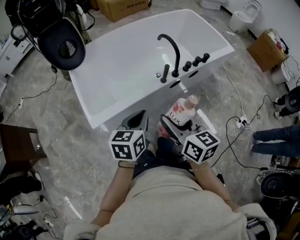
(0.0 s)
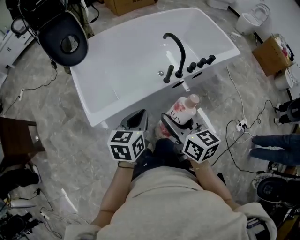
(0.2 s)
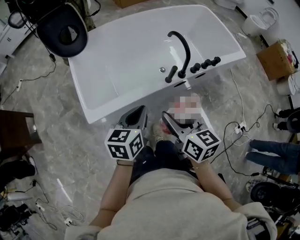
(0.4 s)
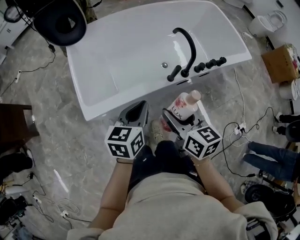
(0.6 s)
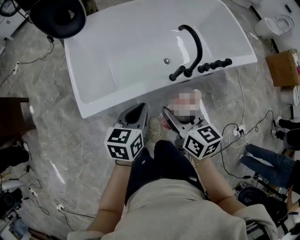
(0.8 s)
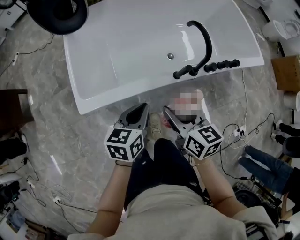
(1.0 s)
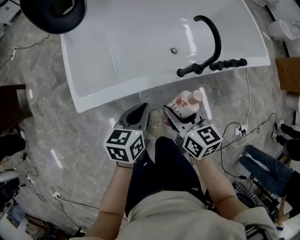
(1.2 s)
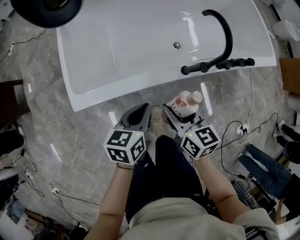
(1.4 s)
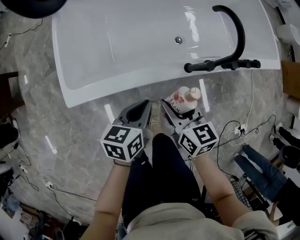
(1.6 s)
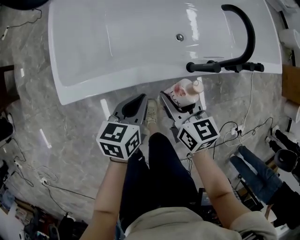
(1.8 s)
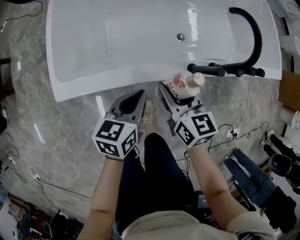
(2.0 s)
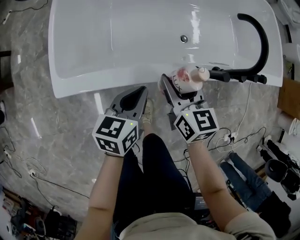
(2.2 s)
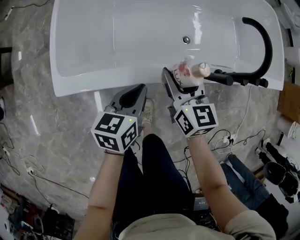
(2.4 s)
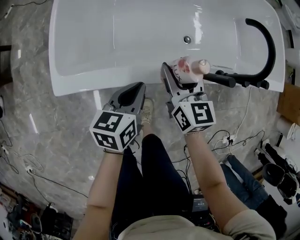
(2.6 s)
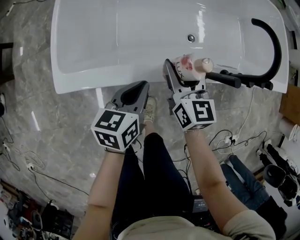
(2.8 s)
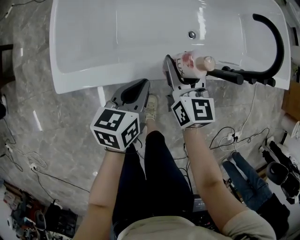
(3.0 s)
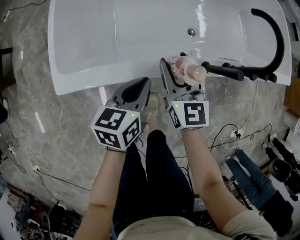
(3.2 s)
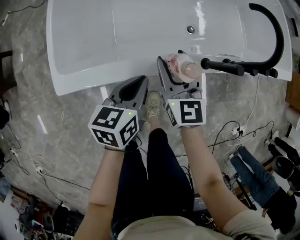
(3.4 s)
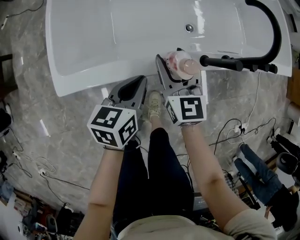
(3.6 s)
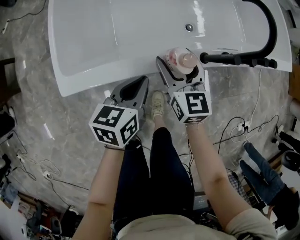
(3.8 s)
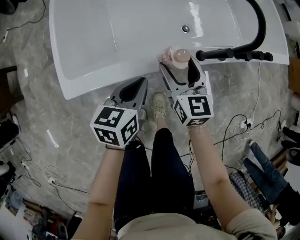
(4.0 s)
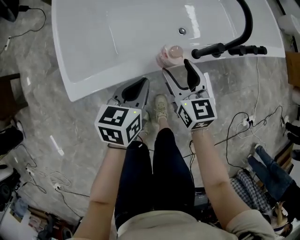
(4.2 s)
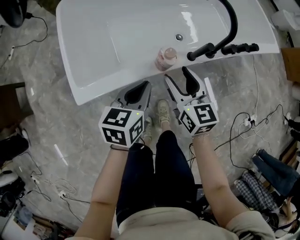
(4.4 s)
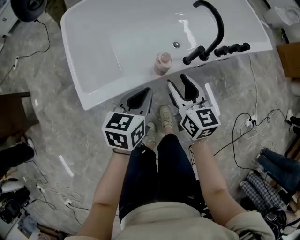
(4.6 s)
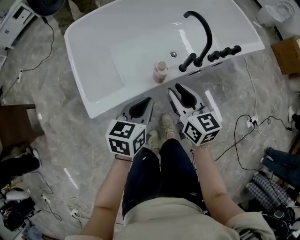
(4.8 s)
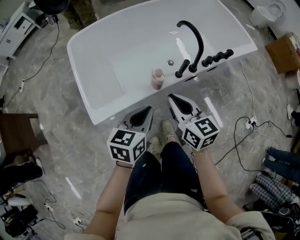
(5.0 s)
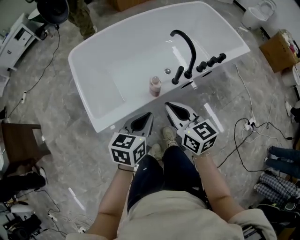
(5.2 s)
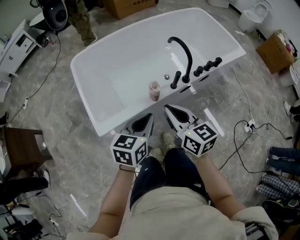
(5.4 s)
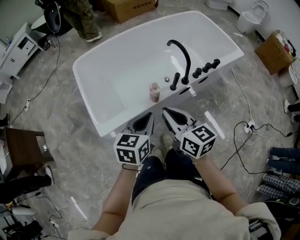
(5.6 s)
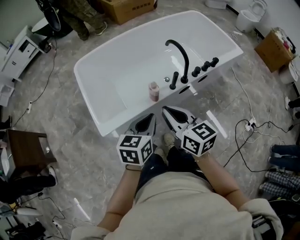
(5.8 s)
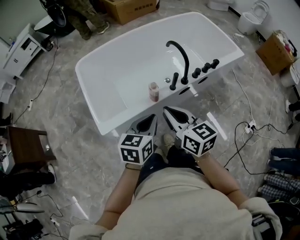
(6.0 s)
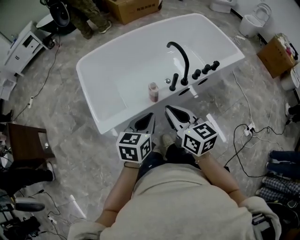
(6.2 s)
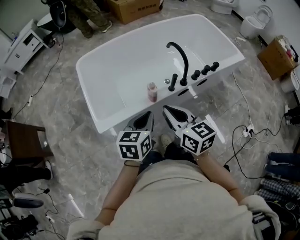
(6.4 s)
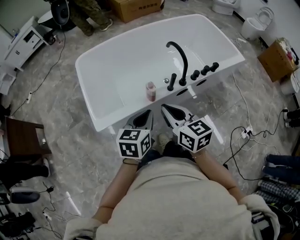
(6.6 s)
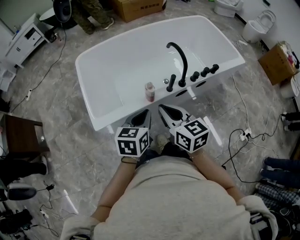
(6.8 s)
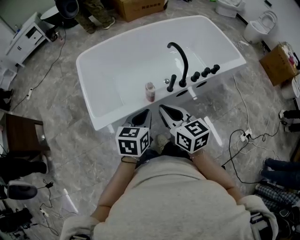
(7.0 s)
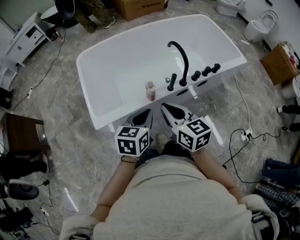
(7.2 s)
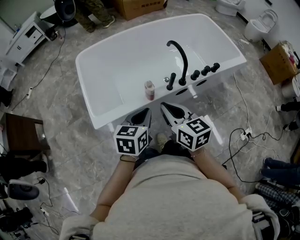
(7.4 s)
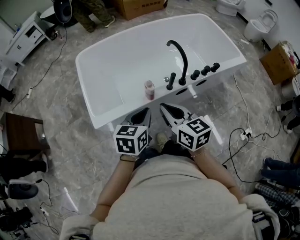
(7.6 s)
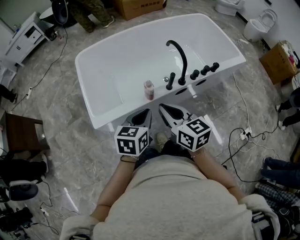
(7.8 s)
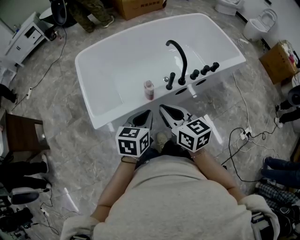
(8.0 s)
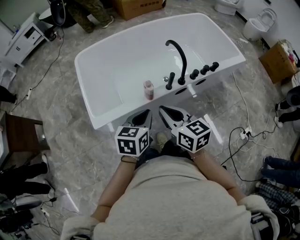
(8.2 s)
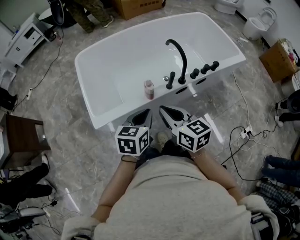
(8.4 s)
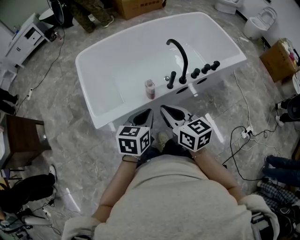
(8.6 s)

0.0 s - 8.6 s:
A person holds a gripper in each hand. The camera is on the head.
0.0 s - 1.4 s: The grippers both shift downward and forward by roughly 25 cm. The left gripper swivels approximately 20 degrees; the right gripper swivels some 20 degrees.
1.4 s - 2.8 s: The right gripper goes approximately 15 cm forward and downward. The left gripper goes some 10 cm downward and forward.
2.8 s - 4.4 s: The right gripper is displaced backward and upward by approximately 10 cm; the left gripper goes some 10 cm upward.
4.4 s - 5.8 s: The two grippers go about 25 cm upward and backward. The right gripper closes up.
5.8 s - 8.6 s: The grippers make only small movements.

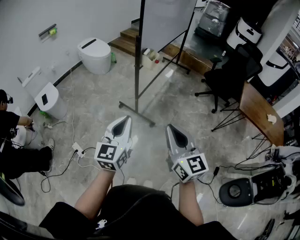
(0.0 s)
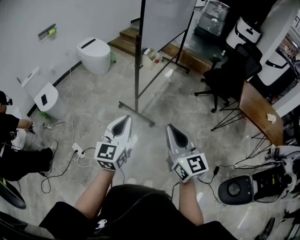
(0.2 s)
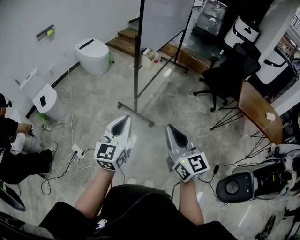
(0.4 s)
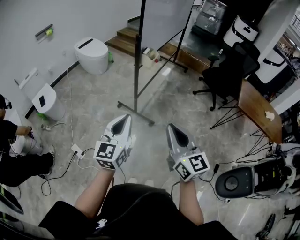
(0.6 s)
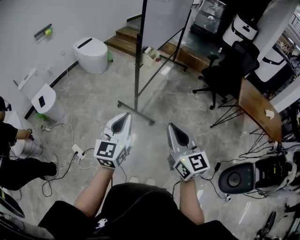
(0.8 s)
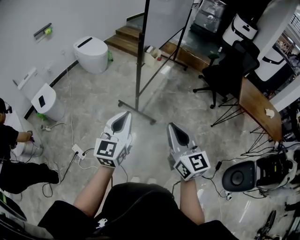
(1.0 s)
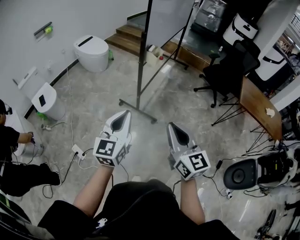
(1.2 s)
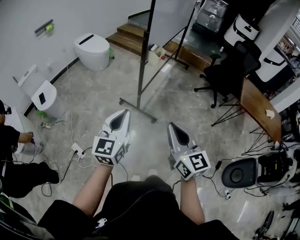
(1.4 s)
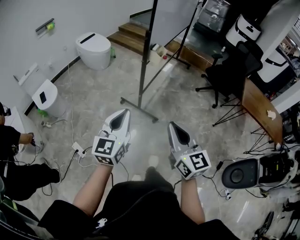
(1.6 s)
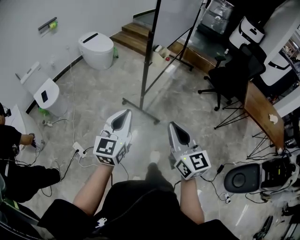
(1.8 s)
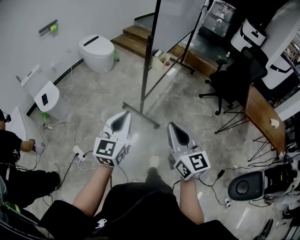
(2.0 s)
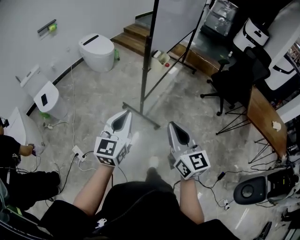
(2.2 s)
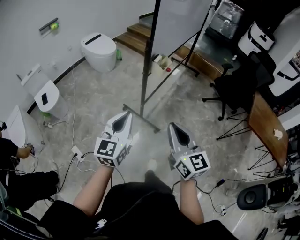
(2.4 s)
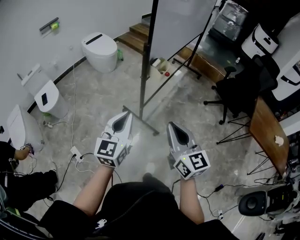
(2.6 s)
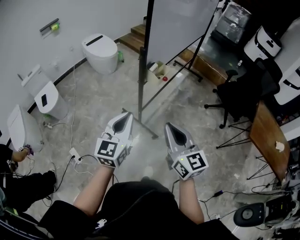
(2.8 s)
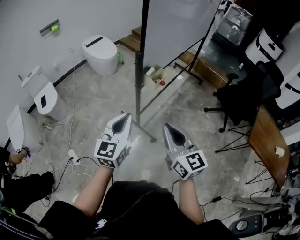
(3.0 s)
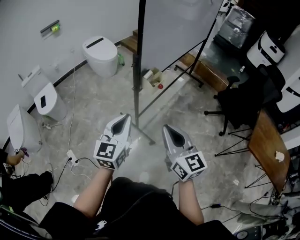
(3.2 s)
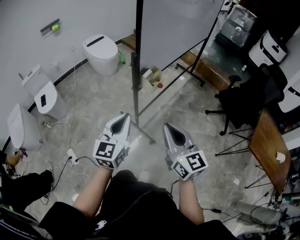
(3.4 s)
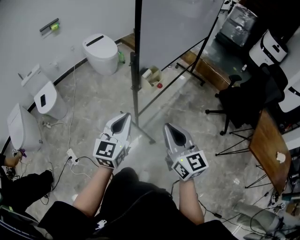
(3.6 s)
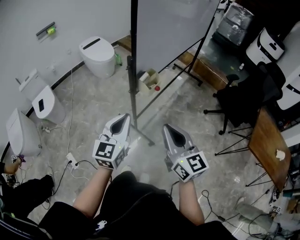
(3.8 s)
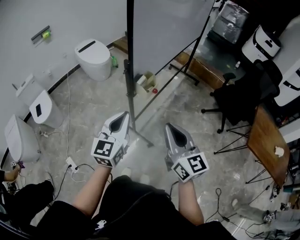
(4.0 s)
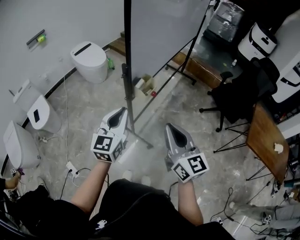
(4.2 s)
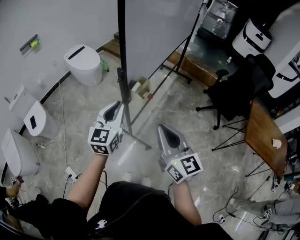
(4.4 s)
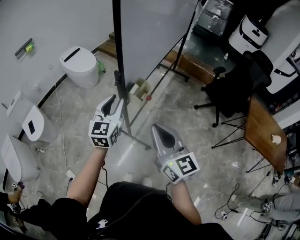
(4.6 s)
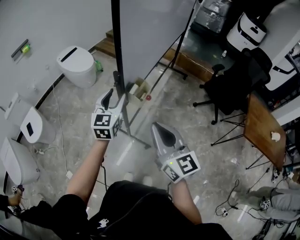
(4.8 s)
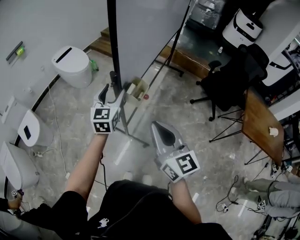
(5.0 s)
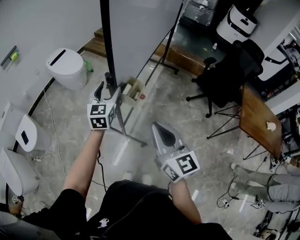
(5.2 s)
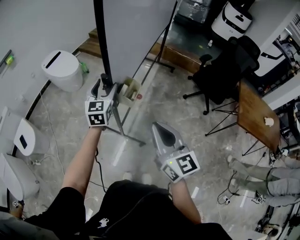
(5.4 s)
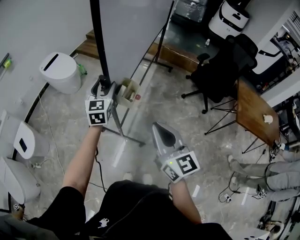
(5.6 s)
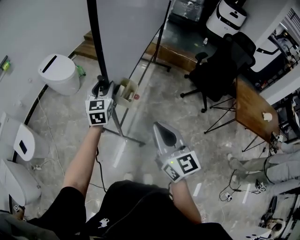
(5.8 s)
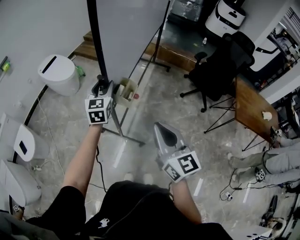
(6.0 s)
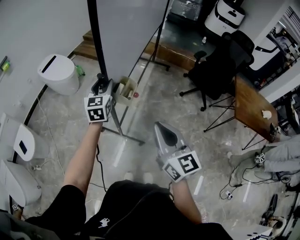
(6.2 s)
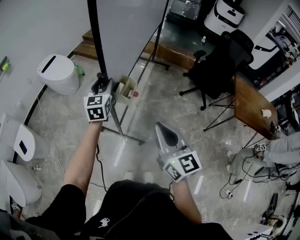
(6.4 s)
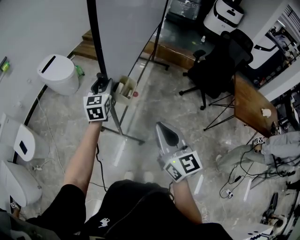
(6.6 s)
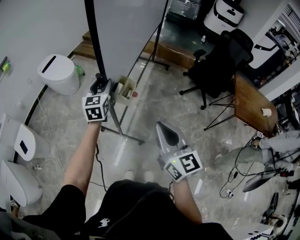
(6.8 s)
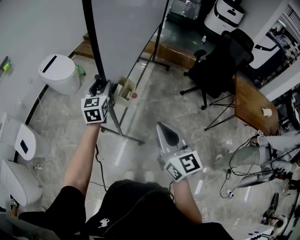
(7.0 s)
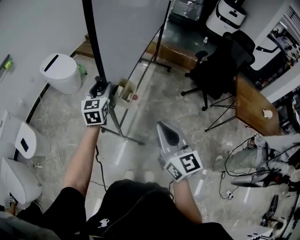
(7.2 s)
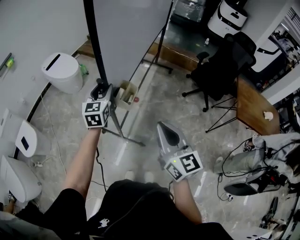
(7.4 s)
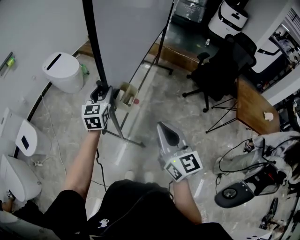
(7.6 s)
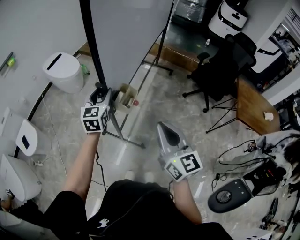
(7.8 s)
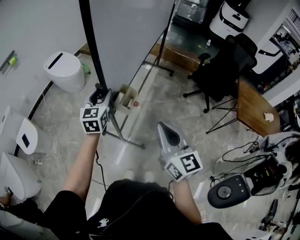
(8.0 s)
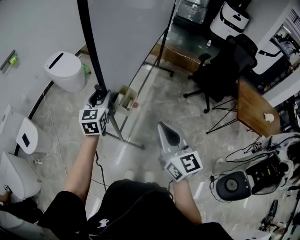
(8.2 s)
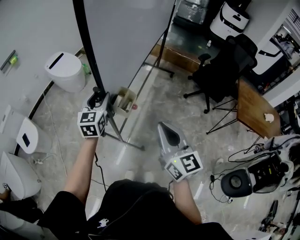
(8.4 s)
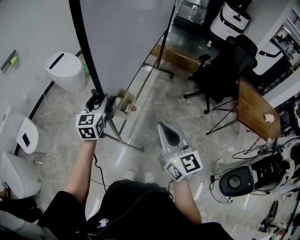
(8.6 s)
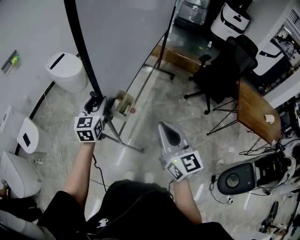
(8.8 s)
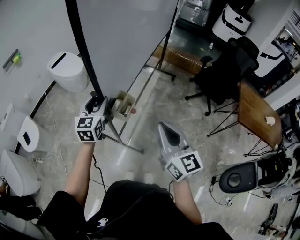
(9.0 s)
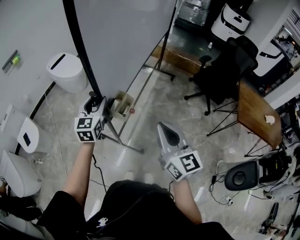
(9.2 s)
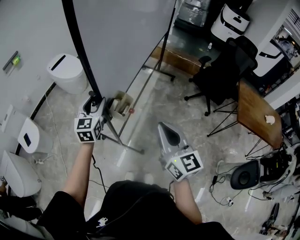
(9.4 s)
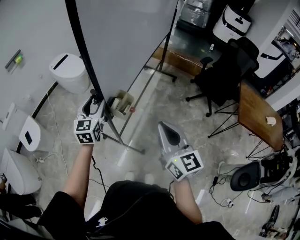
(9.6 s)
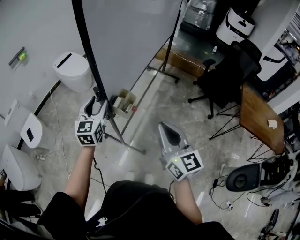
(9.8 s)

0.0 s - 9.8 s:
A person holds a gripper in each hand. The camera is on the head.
0.0 s - 1.4 s: Both grippers travel together to the left, about 10 cm.
1.4 s - 2.8 s: The right gripper moves forward, approximately 25 cm, while the left gripper moves forward and to the right, approximately 25 cm.
2.8 s - 4.2 s: The right gripper is displaced forward and to the right by about 10 cm; the left gripper heads forward, covering some 15 cm.
4.2 s - 5.6 s: The right gripper ends up roughly 5 cm from where it was. The left gripper travels forward by about 20 cm, and opens up.
5.6 s - 7.0 s: The grippers stay close to where they were, moving slightly.
7.0 s - 8.4 s: The left gripper travels backward by roughly 10 cm.
8.4 s - 9.8 s: The left gripper goes approximately 5 cm backward.

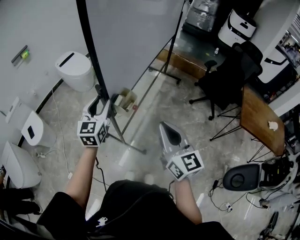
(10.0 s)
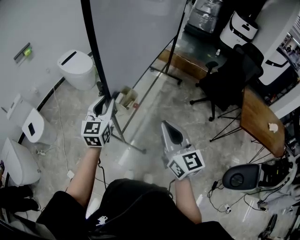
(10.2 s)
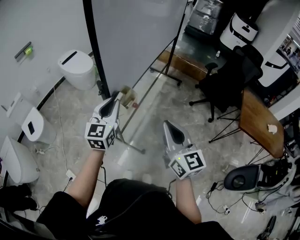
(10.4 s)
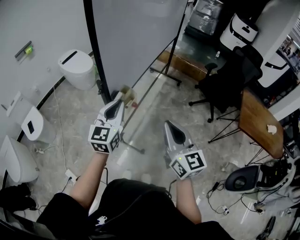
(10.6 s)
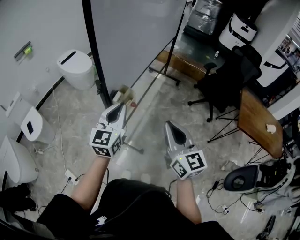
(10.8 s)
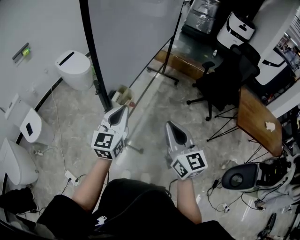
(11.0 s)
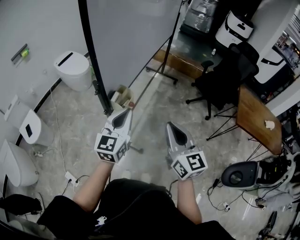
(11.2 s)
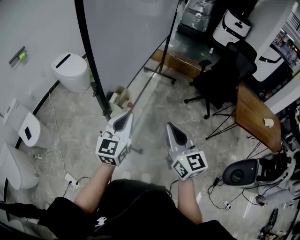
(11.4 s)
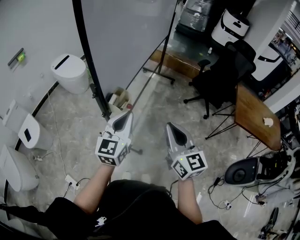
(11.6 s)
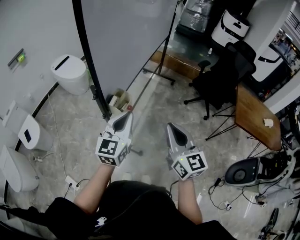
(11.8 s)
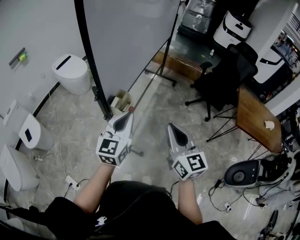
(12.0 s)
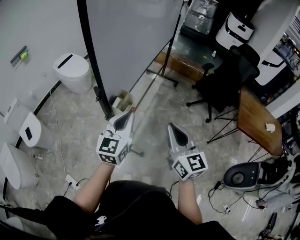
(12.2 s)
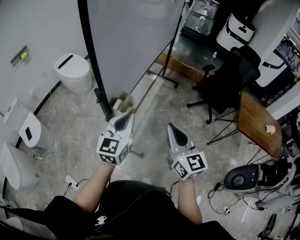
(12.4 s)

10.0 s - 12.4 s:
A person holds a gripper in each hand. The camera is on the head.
10.0 s - 11.2 s: The right gripper changes place by some 5 cm. Meanwhile the left gripper shifts about 15 cm to the right and backward, and closes up.
11.2 s - 12.4 s: There are only small adjustments of the grippers.

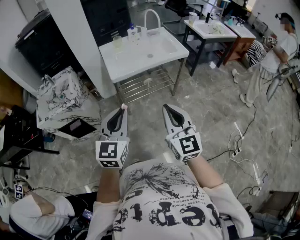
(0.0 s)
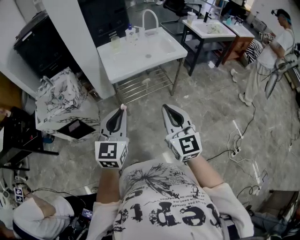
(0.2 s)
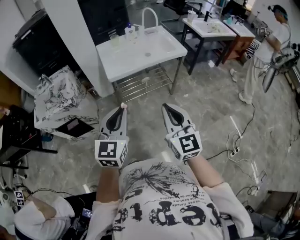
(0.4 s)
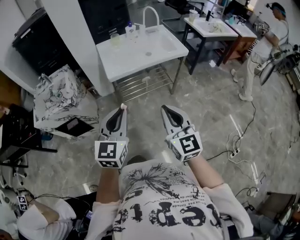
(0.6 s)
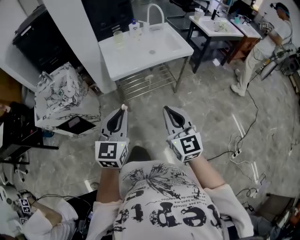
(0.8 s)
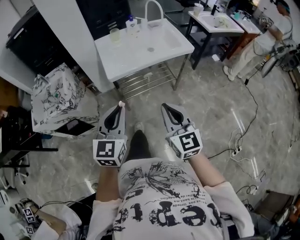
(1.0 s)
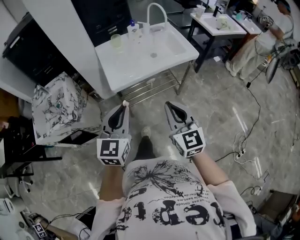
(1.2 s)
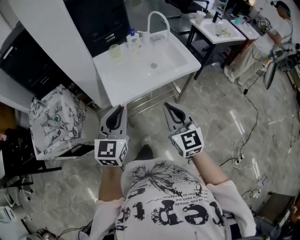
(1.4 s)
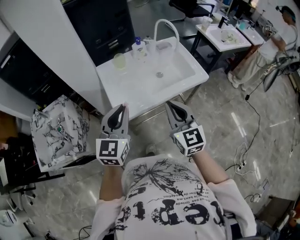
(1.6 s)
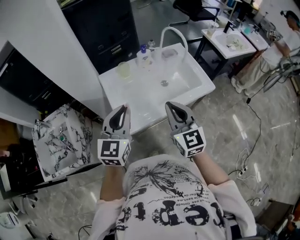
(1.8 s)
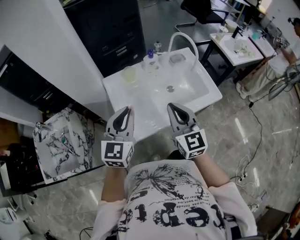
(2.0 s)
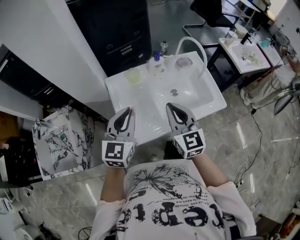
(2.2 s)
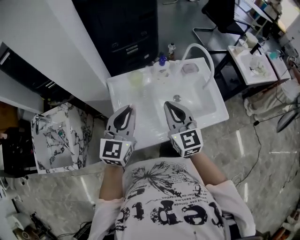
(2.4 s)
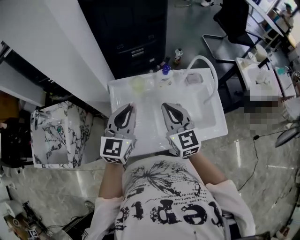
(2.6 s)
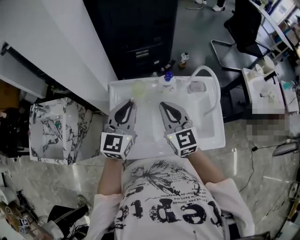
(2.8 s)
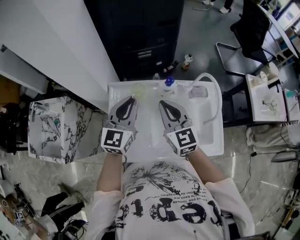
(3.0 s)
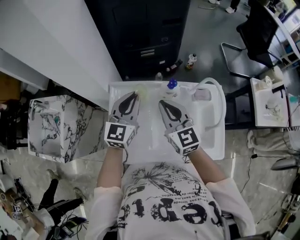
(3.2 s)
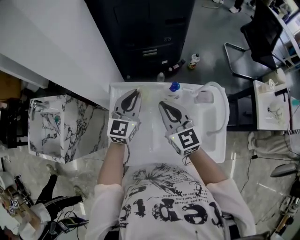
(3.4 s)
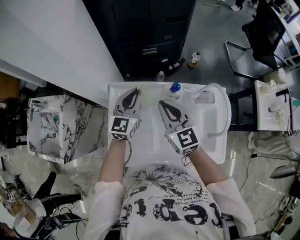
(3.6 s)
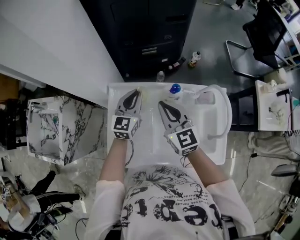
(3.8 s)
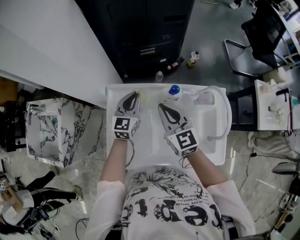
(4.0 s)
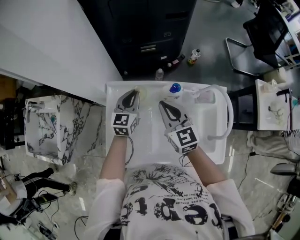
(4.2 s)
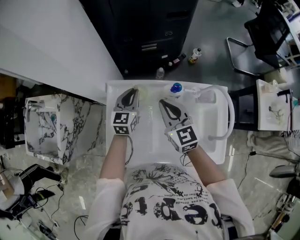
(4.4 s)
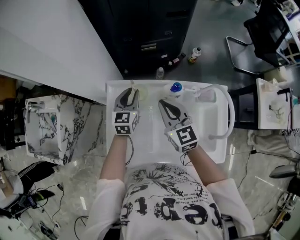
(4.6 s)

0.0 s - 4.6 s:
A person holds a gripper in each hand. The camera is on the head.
0.0 s - 1.6 s: The grippers both shift forward by some 35 cm.
1.6 s - 3.0 s: The grippers both shift forward by some 35 cm. The right gripper swivels some 30 degrees.
3.0 s - 4.6 s: The left gripper heads downward and forward, covering roughly 20 cm, and swivels approximately 20 degrees, while the right gripper moves downward and forward, about 10 cm.
